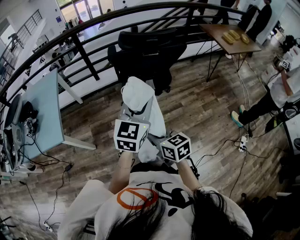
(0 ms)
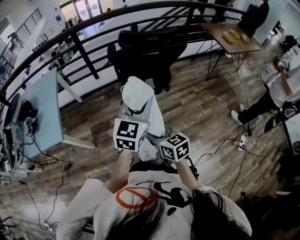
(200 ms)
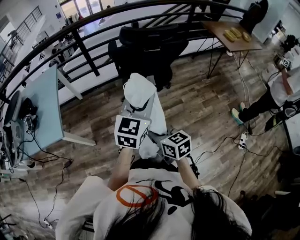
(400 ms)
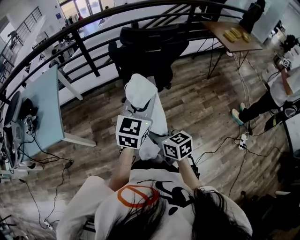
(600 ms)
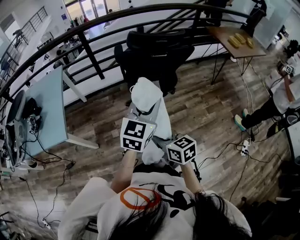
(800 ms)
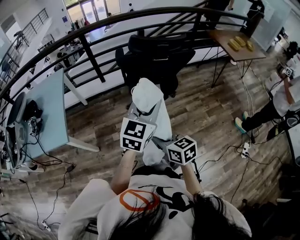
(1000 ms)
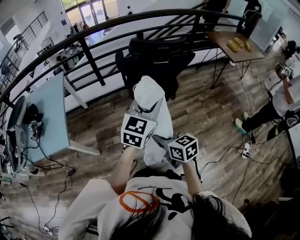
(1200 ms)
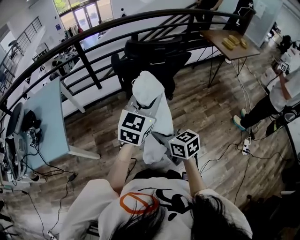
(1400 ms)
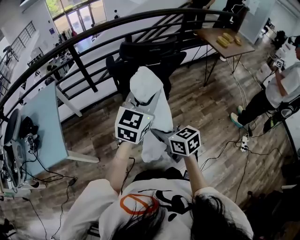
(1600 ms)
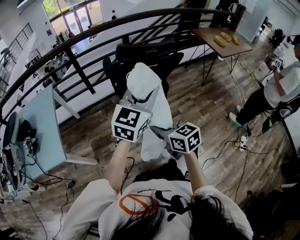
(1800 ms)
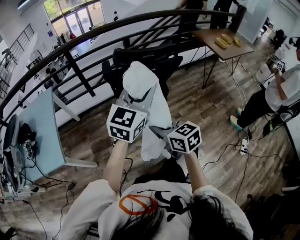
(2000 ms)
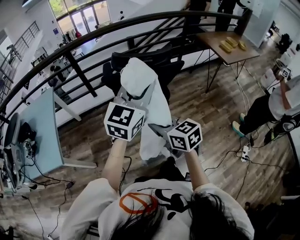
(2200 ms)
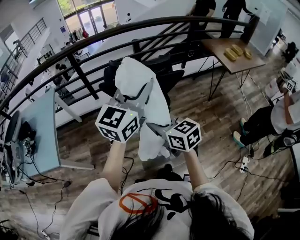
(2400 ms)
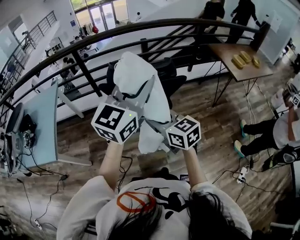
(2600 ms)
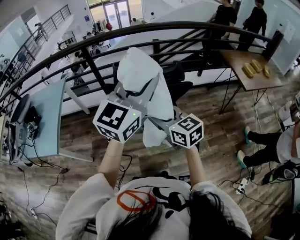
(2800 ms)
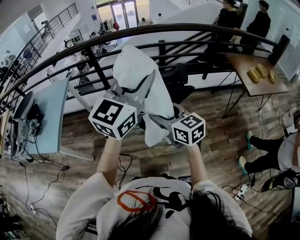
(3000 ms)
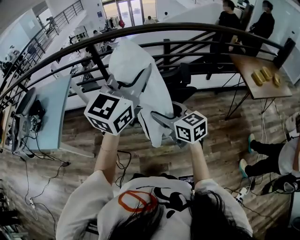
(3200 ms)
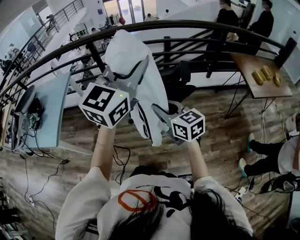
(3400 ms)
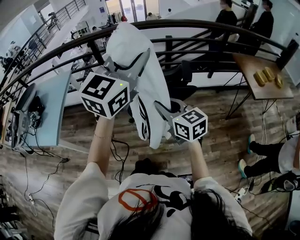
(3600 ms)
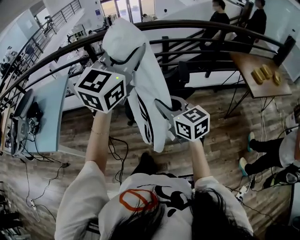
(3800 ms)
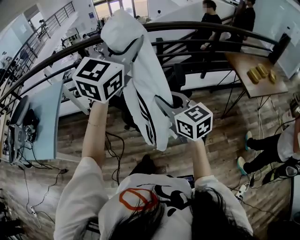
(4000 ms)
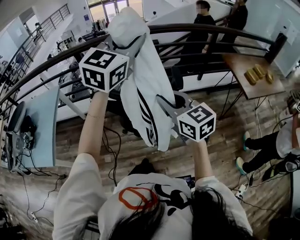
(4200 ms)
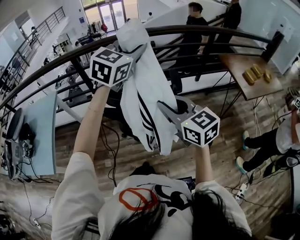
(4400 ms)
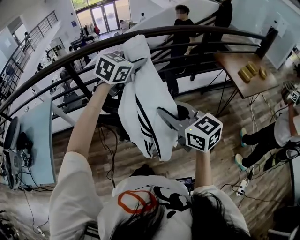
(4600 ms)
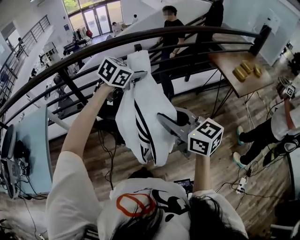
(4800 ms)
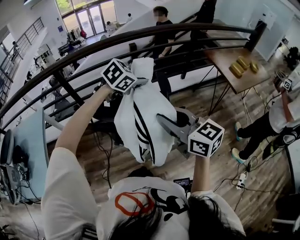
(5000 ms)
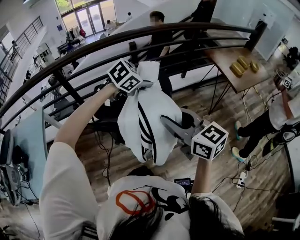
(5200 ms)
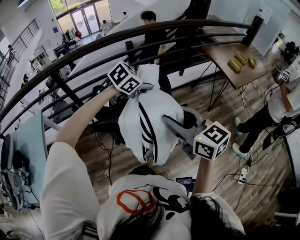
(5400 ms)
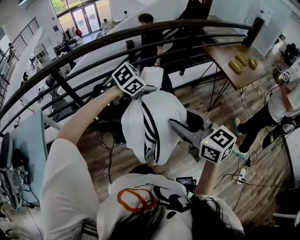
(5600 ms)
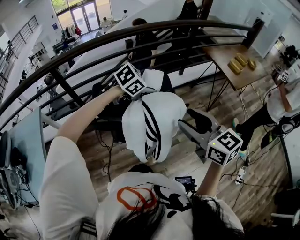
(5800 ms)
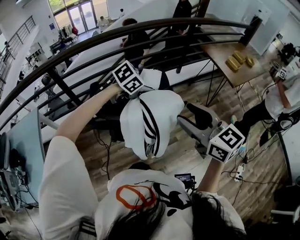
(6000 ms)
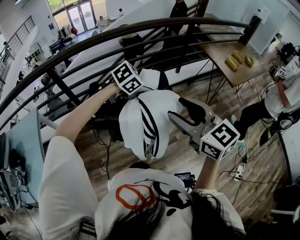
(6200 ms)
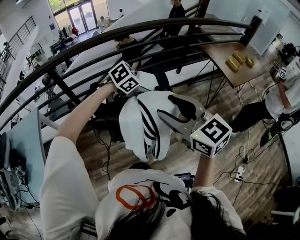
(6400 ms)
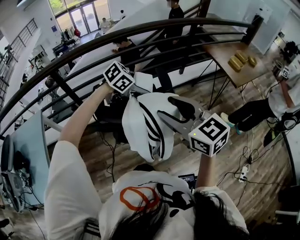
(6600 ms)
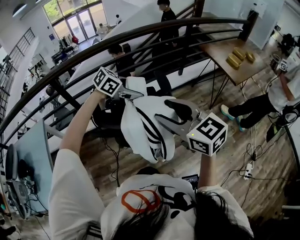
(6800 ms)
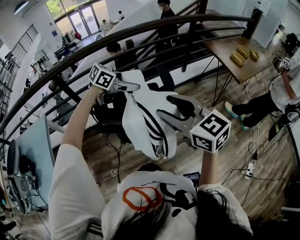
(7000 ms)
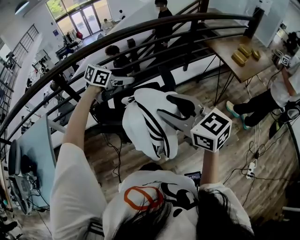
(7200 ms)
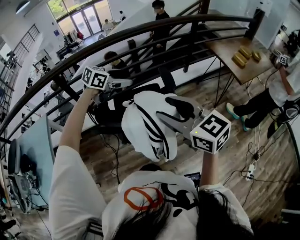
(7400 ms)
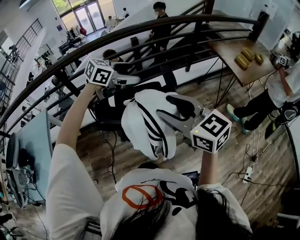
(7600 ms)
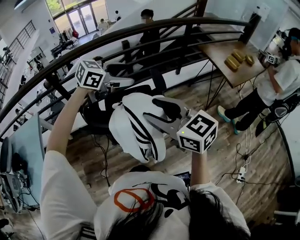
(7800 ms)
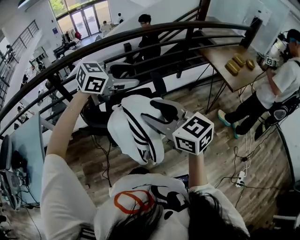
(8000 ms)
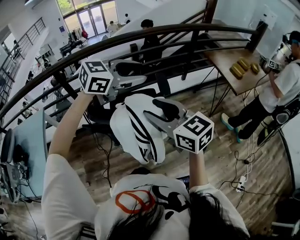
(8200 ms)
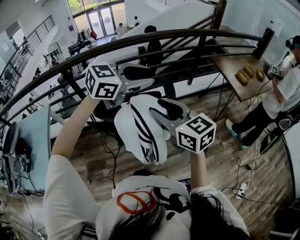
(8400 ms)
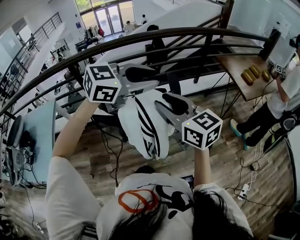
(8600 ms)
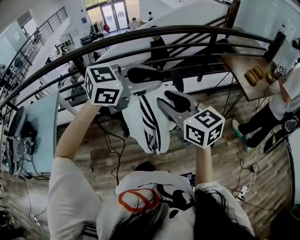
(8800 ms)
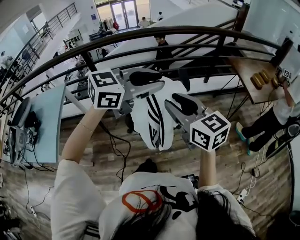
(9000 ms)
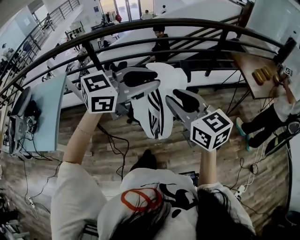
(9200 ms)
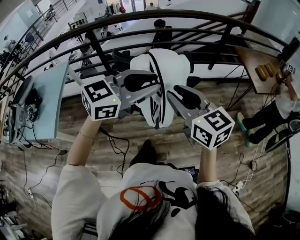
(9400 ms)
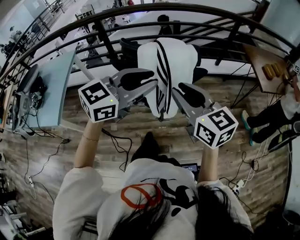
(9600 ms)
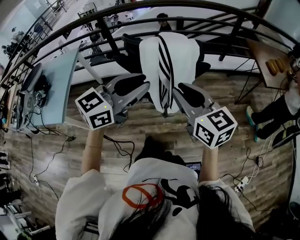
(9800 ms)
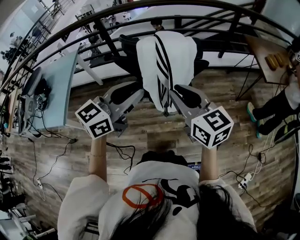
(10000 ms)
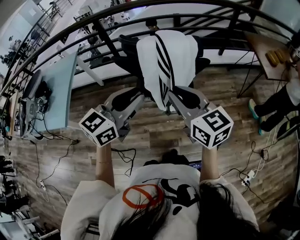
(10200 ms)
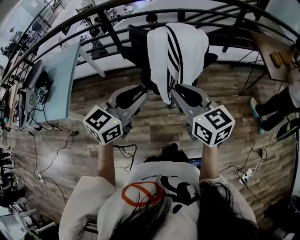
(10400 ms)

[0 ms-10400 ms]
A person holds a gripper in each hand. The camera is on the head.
0 ms to 1400 ms: The right gripper moves about 5 cm.
1400 ms to 3000 ms: The left gripper goes about 25 cm forward, upward and to the right. Meanwhile the right gripper moves forward and to the right, about 30 cm, rotates some 20 degrees, and opens up.
3000 ms to 4400 ms: The right gripper shifts roughly 10 cm forward and upward, and closes up, while the left gripper is displaced forward by approximately 25 cm.
4400 ms to 6000 ms: The right gripper moves approximately 5 cm, and opens up, while the left gripper is displaced downward by about 25 cm, and tips its fingers downward by roughly 40 degrees.
6000 ms to 7400 ms: The right gripper moves some 10 cm. Meanwhile the left gripper moves roughly 15 cm, changes its angle by about 20 degrees, and opens.
7400 ms to 9000 ms: The left gripper is displaced backward, upward and to the right by roughly 30 cm, changes its angle by some 20 degrees, and closes, while the right gripper shifts some 5 cm backward.
9000 ms to 10400 ms: The left gripper is displaced backward, downward and to the left by approximately 25 cm, and turns by about 30 degrees. The right gripper is displaced backward and downward by roughly 15 cm.

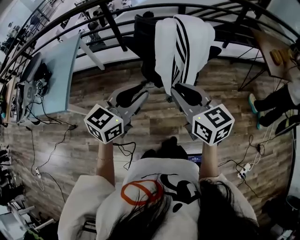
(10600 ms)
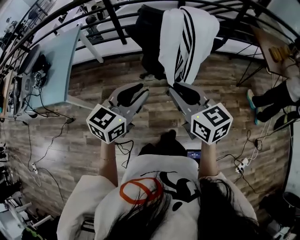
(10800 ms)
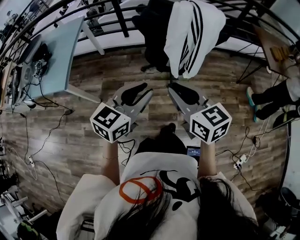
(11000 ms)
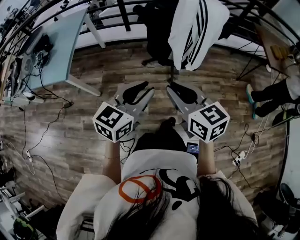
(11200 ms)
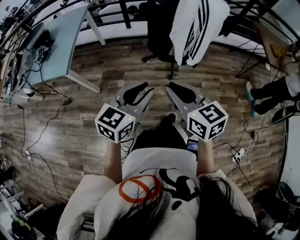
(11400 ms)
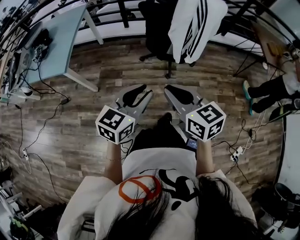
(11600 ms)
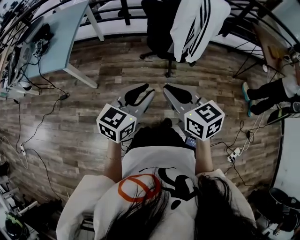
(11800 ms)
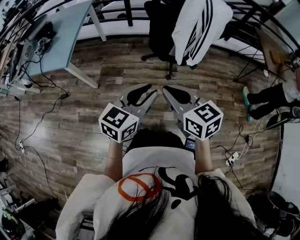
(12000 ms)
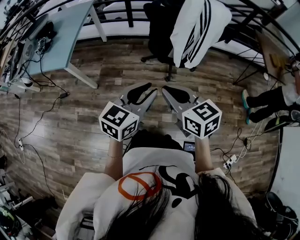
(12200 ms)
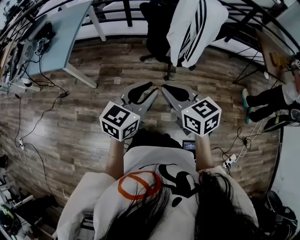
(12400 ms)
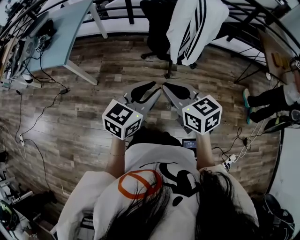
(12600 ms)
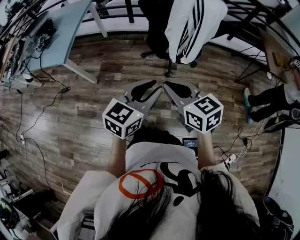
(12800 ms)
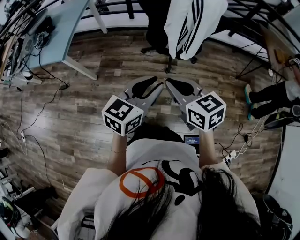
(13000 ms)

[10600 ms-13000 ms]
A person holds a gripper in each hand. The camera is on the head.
10600 ms to 11800 ms: The right gripper shifts roughly 20 cm backward and to the left. Meanwhile the left gripper heads backward, covering about 20 cm.
11800 ms to 13000 ms: Both grippers travel together to the right, approximately 10 cm.

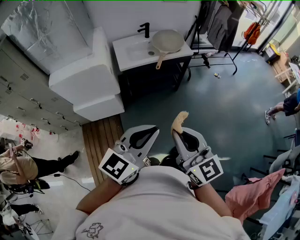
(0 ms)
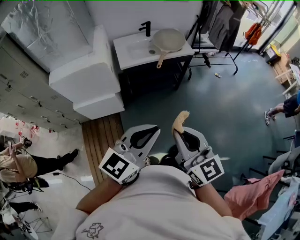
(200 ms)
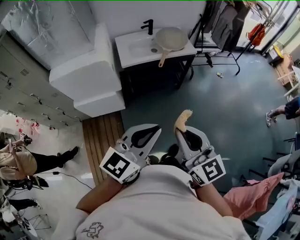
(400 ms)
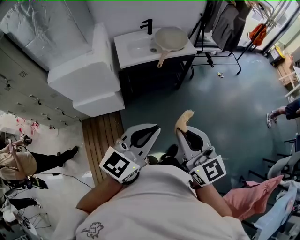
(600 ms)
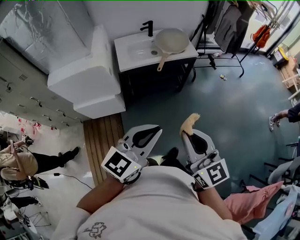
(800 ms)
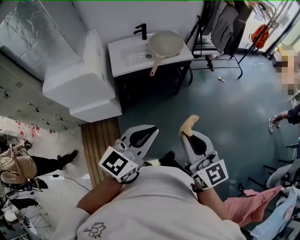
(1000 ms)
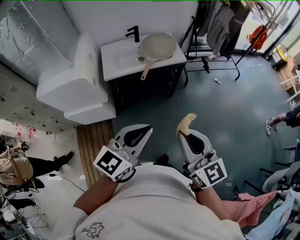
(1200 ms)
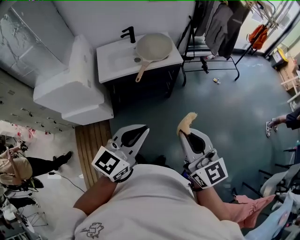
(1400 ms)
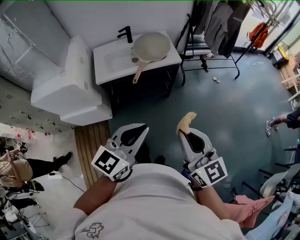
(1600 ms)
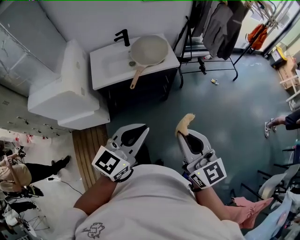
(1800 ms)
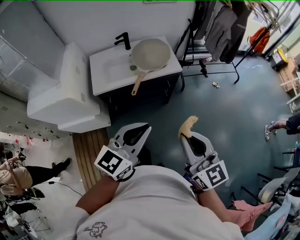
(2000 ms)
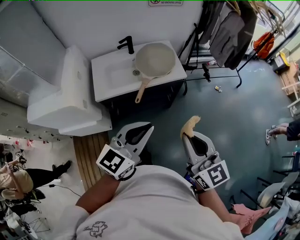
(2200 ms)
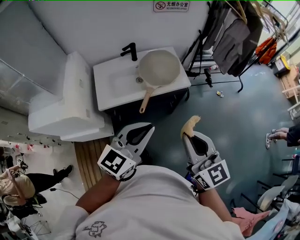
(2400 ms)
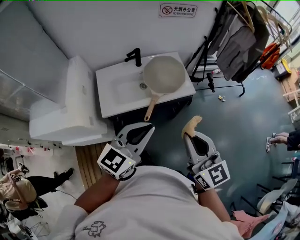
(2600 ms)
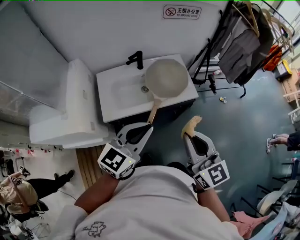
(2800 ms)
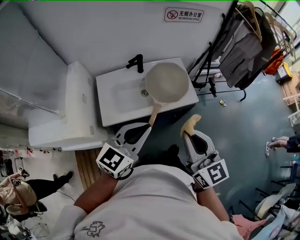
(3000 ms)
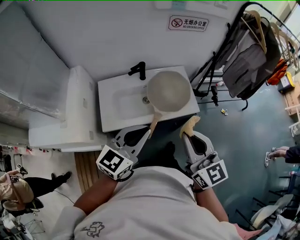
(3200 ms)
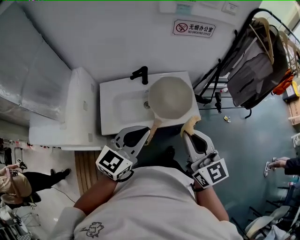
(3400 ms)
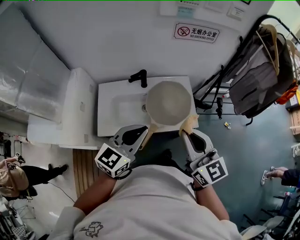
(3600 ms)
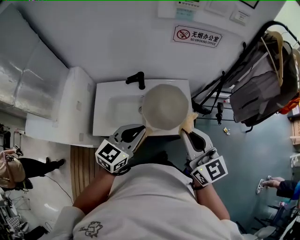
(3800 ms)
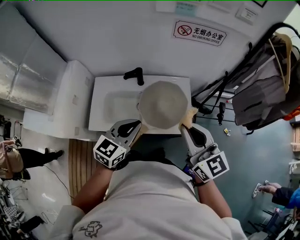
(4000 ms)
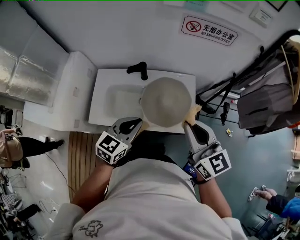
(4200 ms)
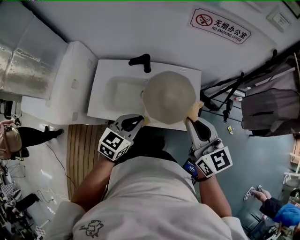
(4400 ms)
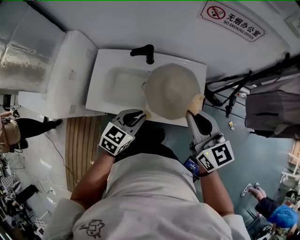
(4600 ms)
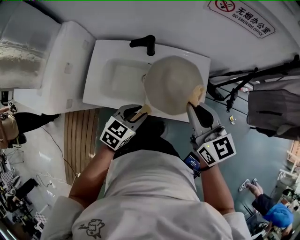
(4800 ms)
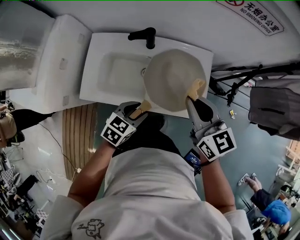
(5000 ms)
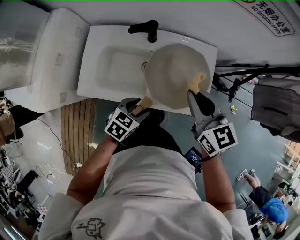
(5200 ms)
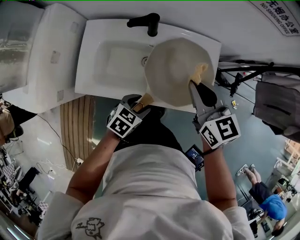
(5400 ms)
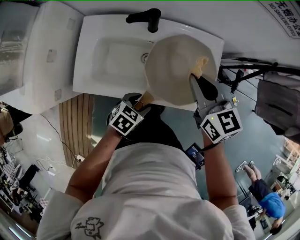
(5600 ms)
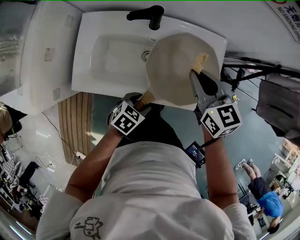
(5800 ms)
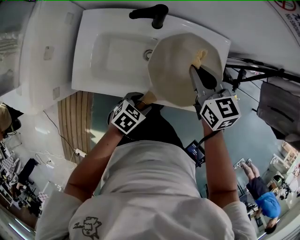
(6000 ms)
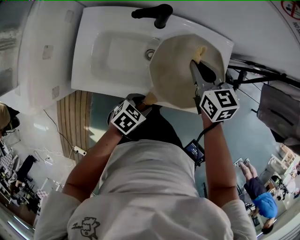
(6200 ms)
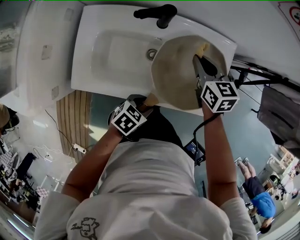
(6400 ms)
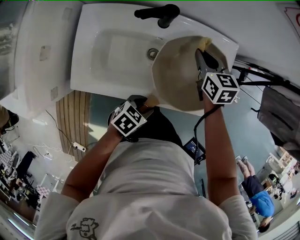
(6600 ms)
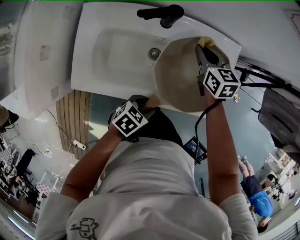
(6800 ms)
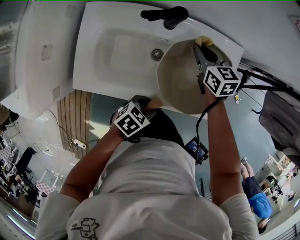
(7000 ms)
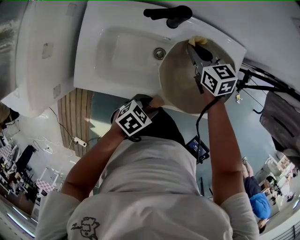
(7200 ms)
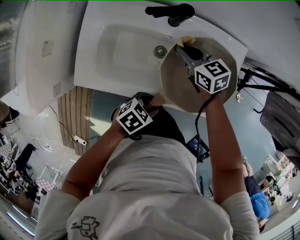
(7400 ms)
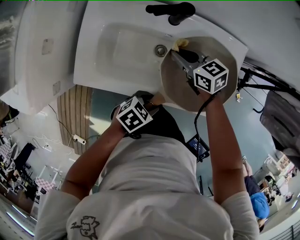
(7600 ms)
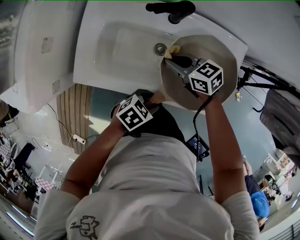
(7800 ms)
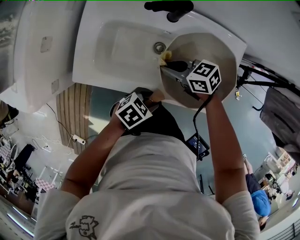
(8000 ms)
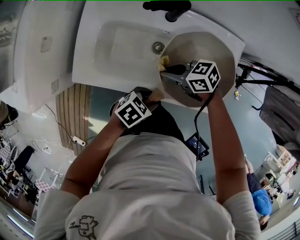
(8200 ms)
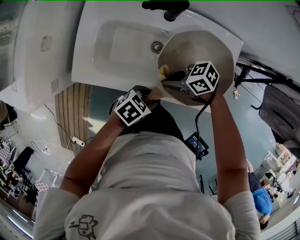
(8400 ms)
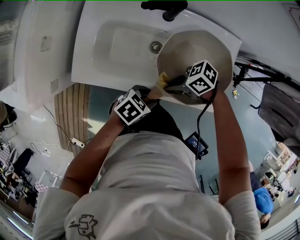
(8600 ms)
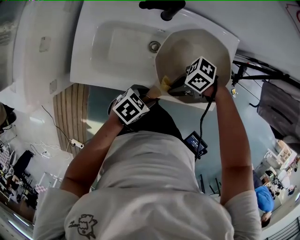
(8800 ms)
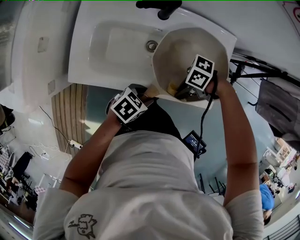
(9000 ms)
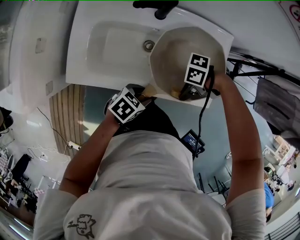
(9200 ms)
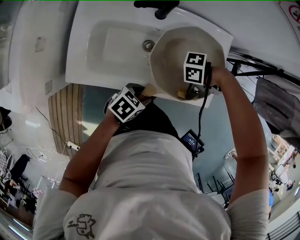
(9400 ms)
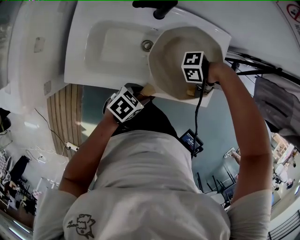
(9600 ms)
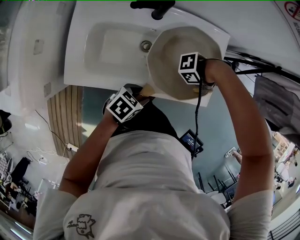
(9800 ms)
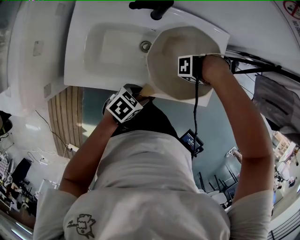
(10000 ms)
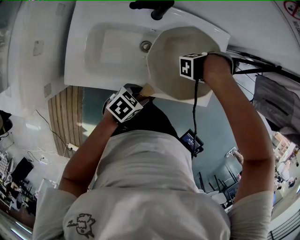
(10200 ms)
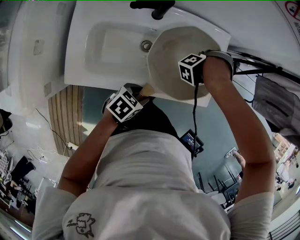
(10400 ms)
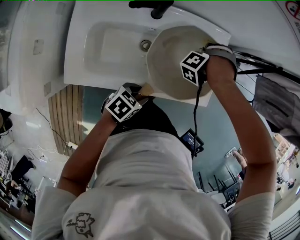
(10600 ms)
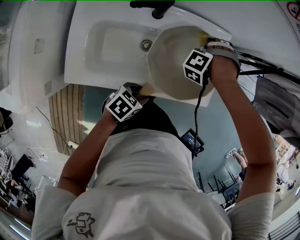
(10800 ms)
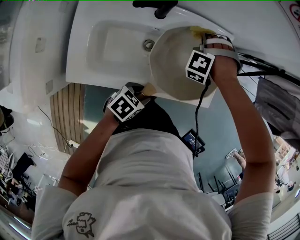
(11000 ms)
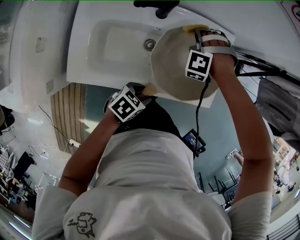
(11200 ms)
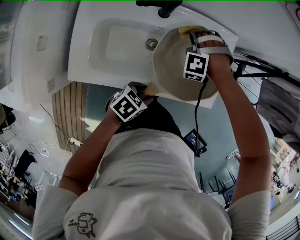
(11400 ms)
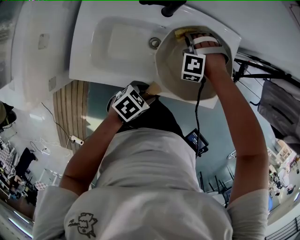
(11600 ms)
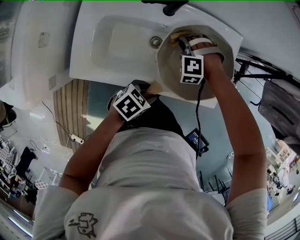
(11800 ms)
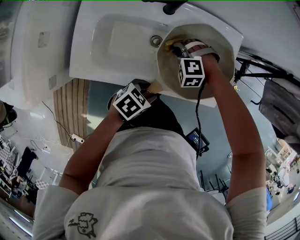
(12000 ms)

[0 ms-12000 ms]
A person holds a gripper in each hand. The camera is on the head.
0 ms to 1600 ms: Both grippers travel together forward and to the right, some 30 cm.
1600 ms to 3000 ms: The two grippers go some 40 cm forward and to the left.
3000 ms to 4400 ms: The left gripper is displaced forward and downward by approximately 25 cm, and changes its angle by roughly 30 degrees; the right gripper goes approximately 30 cm forward, and rotates some 20 degrees.
4400 ms to 6000 ms: The left gripper goes about 25 cm downward, turns by approximately 40 degrees, and opens up; the right gripper travels downward, forward and to the left by about 30 cm, and changes its angle by approximately 20 degrees.
6000 ms to 7600 ms: The right gripper moves downward, roughly 15 cm, and turns by approximately 30 degrees.
7600 ms to 9000 ms: The right gripper changes place by about 25 cm, and changes its angle by roughly 70 degrees.
9000 ms to 10400 ms: The right gripper ends up approximately 25 cm from where it was, and swivels roughly 100 degrees.
10400 ms to 12000 ms: The right gripper changes place by roughly 25 cm, and changes its angle by approximately 70 degrees.
